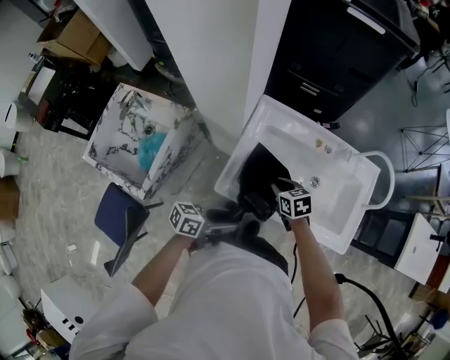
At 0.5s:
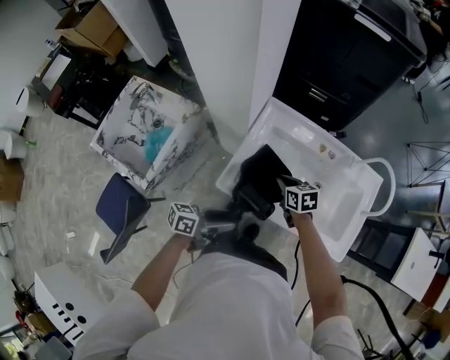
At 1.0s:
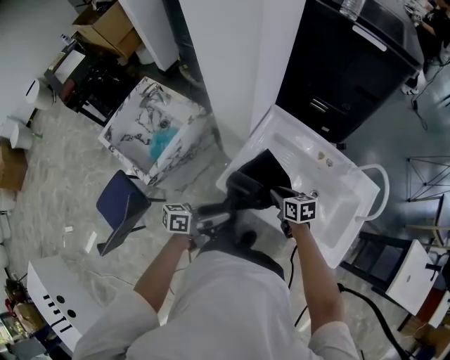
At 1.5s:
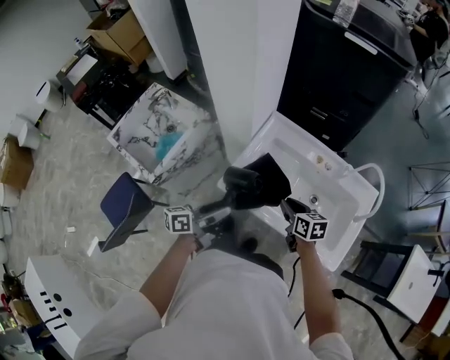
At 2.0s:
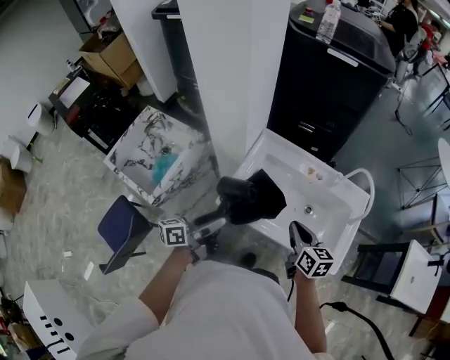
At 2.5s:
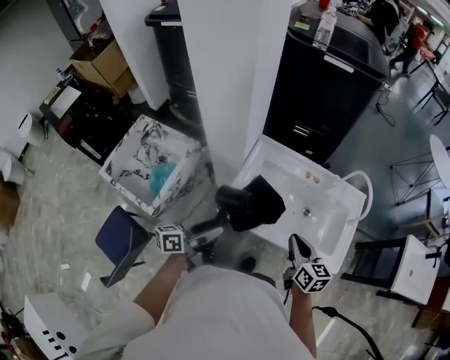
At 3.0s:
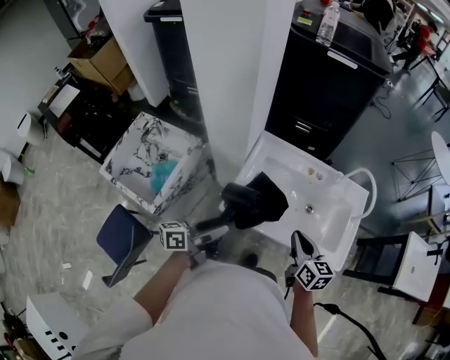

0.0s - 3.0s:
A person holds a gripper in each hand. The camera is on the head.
0.0s - 1.5s: The right gripper heads to the right, backward and upward, covering approximately 15 cm. Meanwhile the left gripper moves upward, about 5 cm, and swivels roughly 40 degrees.
1.5s - 3.0s: The left gripper shifts approximately 5 cm upward. Meanwhile the right gripper goes about 15 cm upward and backward, changes its angle by approximately 30 degrees, and closes up.

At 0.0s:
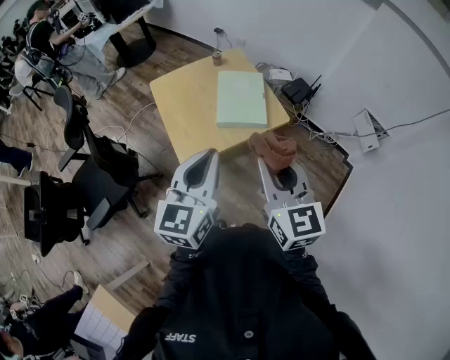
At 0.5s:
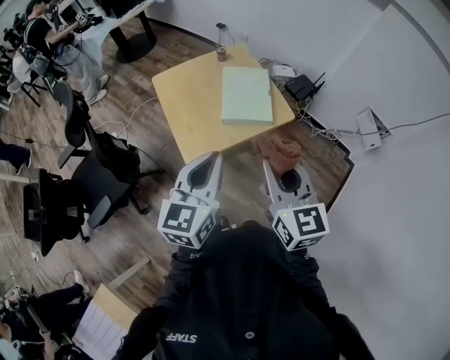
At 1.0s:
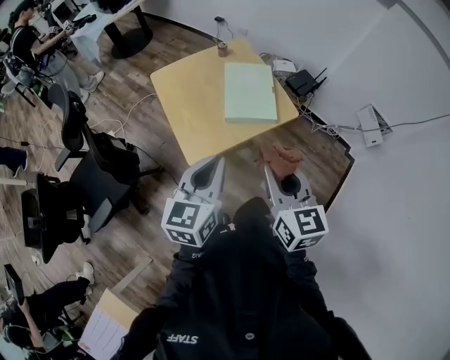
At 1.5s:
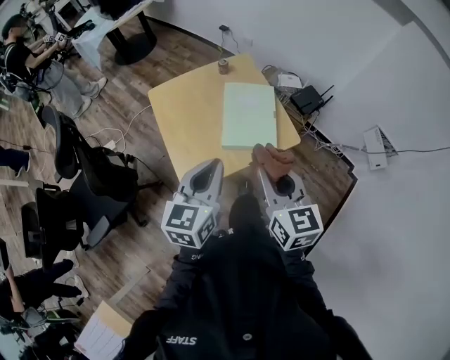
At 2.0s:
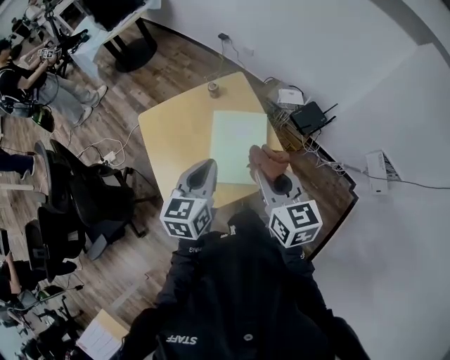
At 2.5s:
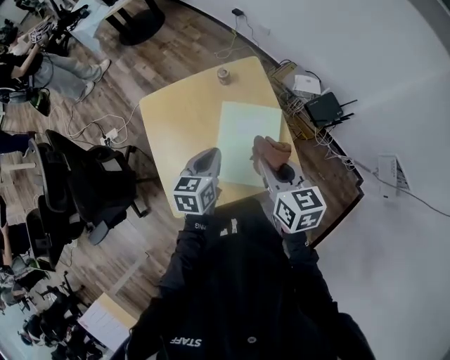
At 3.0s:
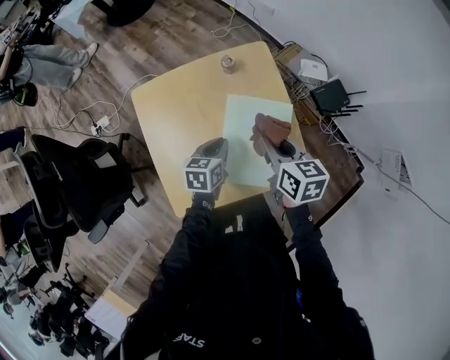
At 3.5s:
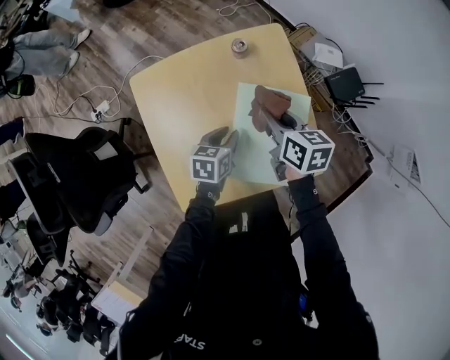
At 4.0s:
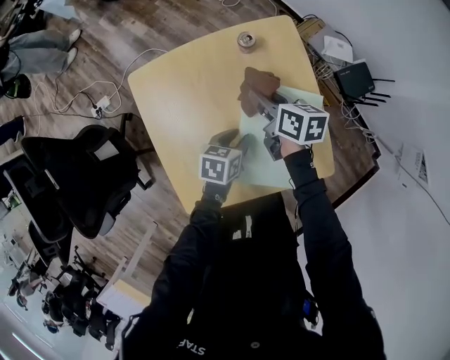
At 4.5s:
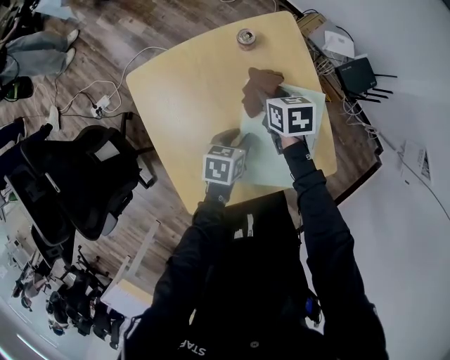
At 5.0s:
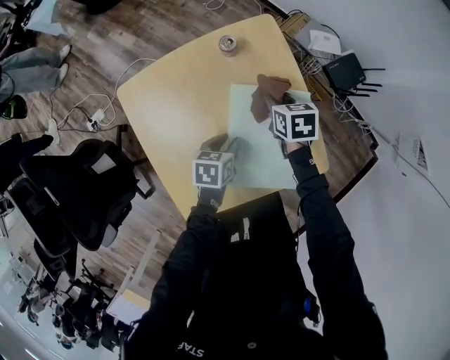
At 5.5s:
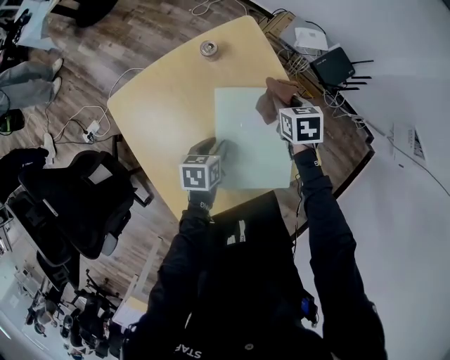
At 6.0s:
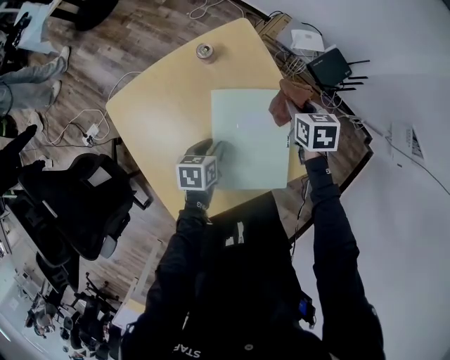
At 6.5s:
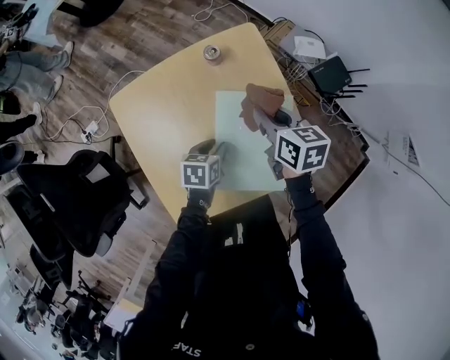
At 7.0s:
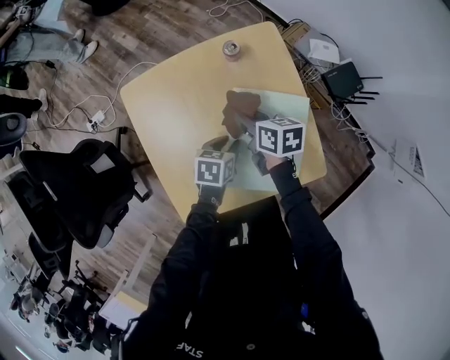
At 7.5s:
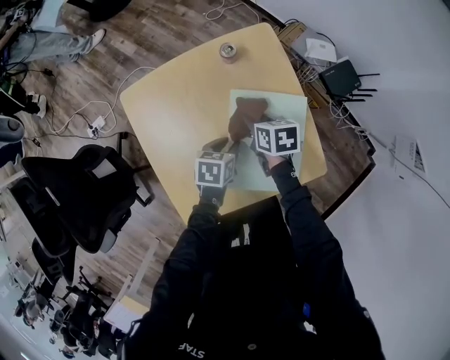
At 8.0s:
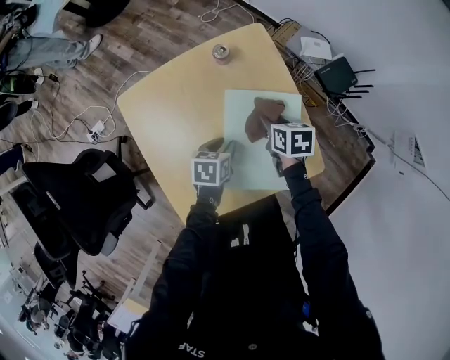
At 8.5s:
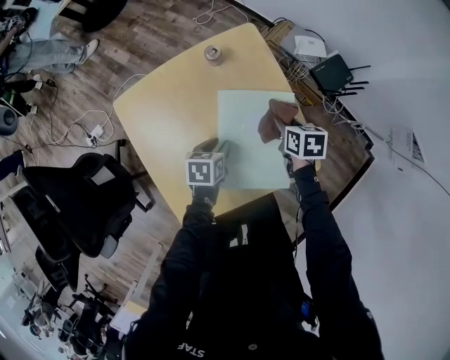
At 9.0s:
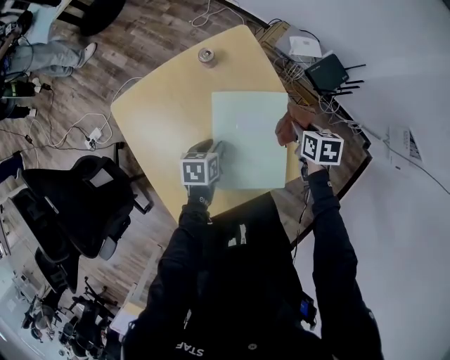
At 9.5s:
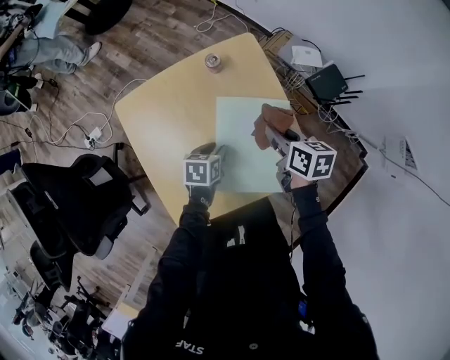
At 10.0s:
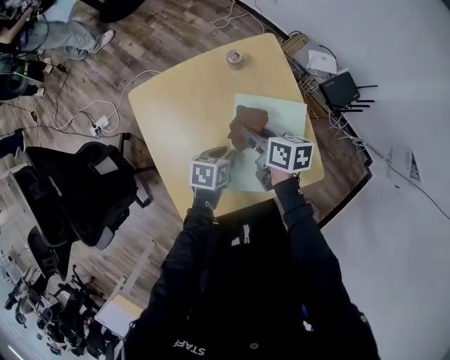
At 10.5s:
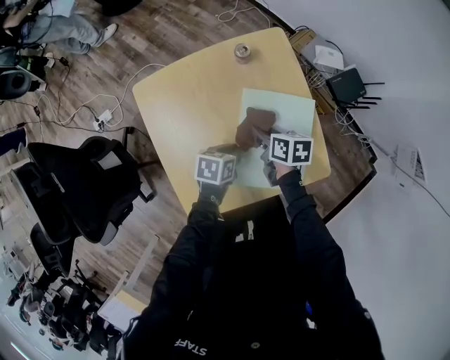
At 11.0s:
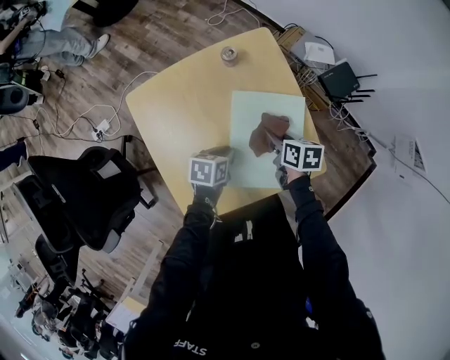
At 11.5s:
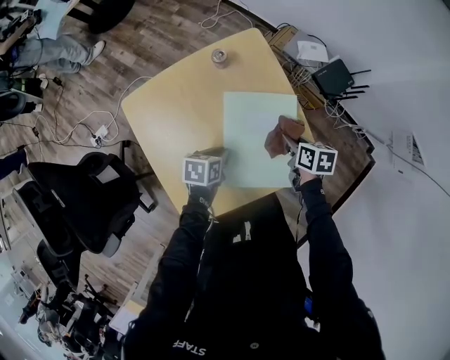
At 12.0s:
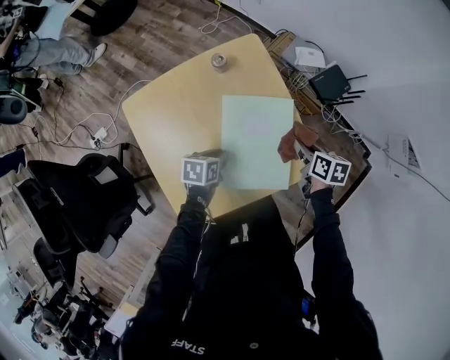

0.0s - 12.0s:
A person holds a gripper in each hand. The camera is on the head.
0.0s - 2.0s: Both grippers move forward, approximately 30 cm.
2.0s - 4.0s: The right gripper travels downward, forward and to the left by approximately 40 cm, and swivels approximately 40 degrees. Meanwhile the left gripper heads downward and forward, covering approximately 35 cm, changes its angle by approximately 40 degrees, and opens.
4.0s - 6.0s: The right gripper goes some 20 cm to the right, and turns by approximately 30 degrees.
6.0s - 8.0s: The right gripper moves to the left and backward, approximately 10 cm.
8.0s - 10.0s: The right gripper moves to the left and upward, about 10 cm, and rotates about 20 degrees.
10.0s - 12.0s: The right gripper heads to the right, covering some 20 cm, and changes its angle by some 20 degrees.

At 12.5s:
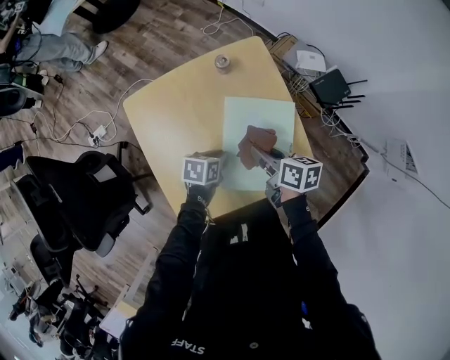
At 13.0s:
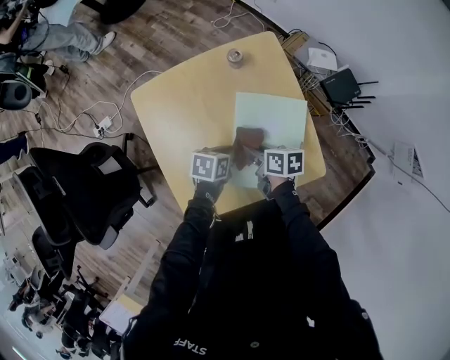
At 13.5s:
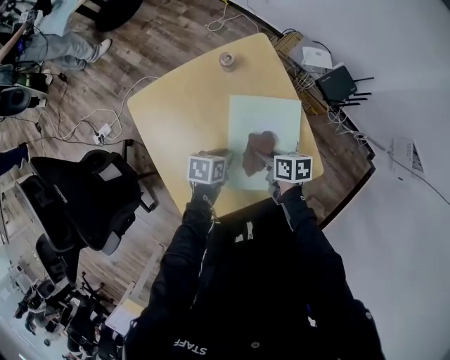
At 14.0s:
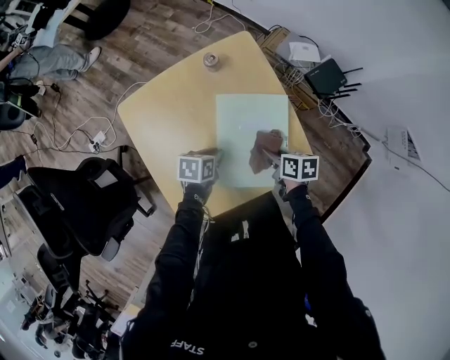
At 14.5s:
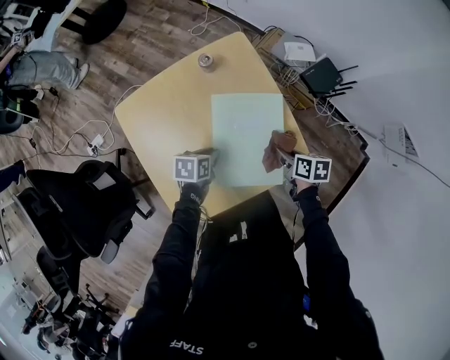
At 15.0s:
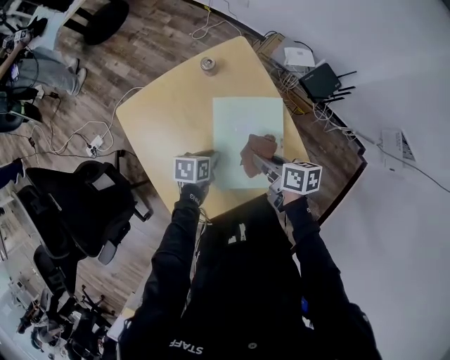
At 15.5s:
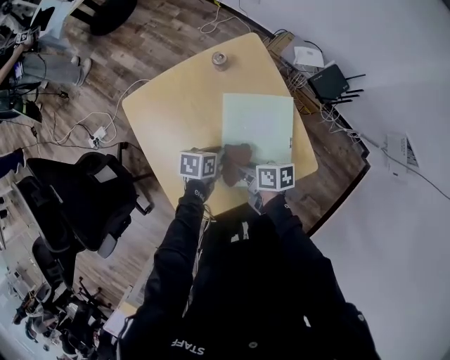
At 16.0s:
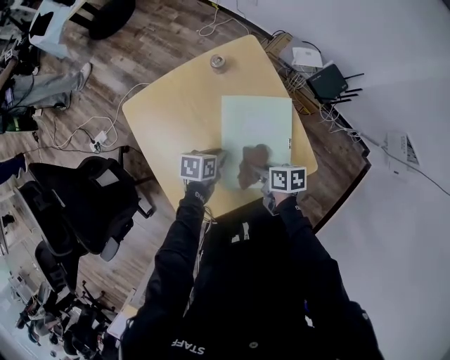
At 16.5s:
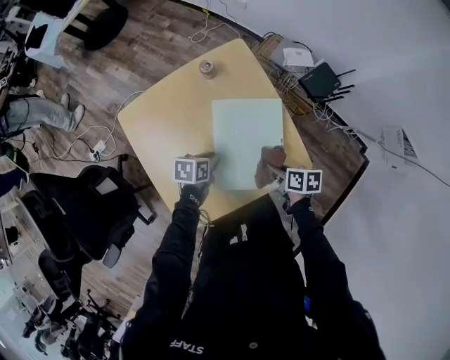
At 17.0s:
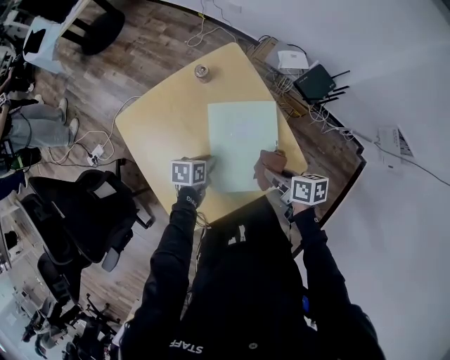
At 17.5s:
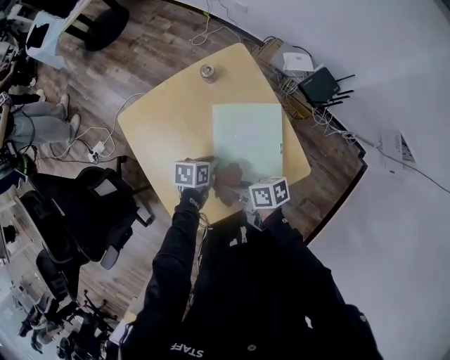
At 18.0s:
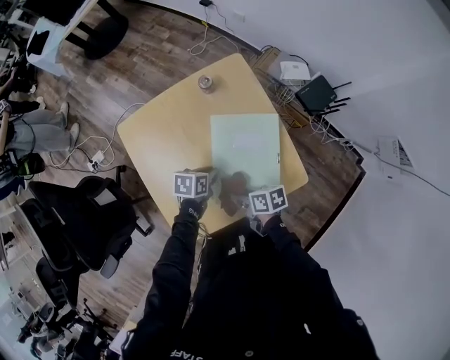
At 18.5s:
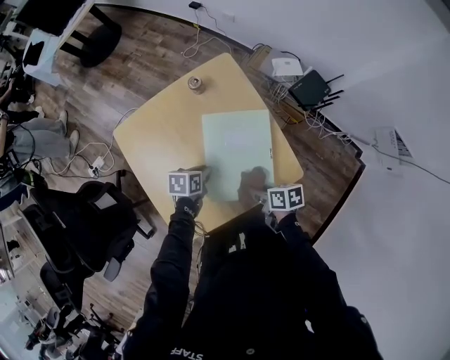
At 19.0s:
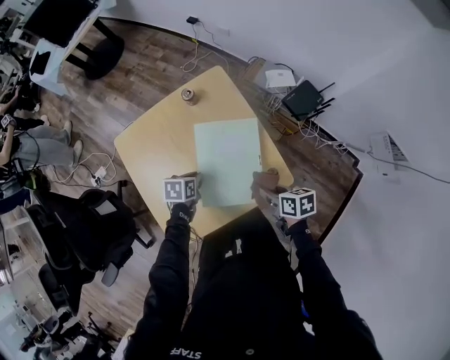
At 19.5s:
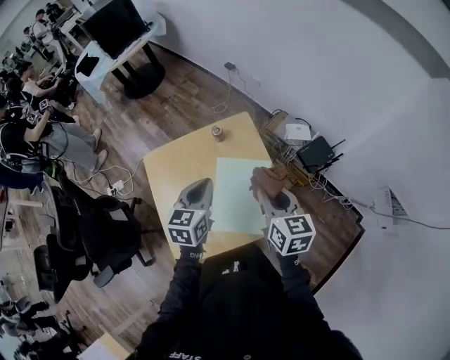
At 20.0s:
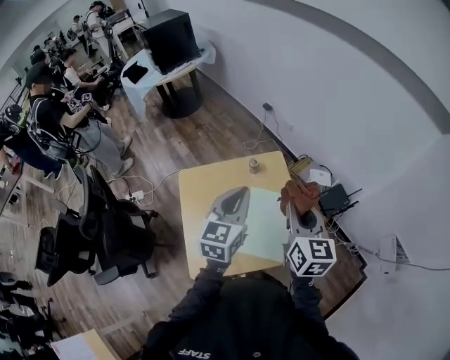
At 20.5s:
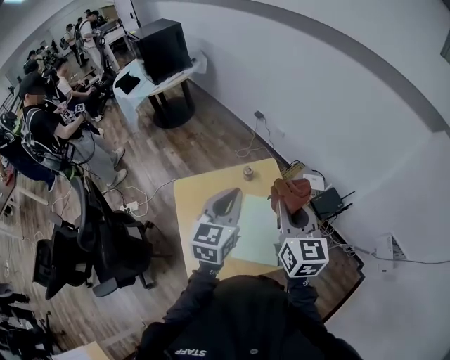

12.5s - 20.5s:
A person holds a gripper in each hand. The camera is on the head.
12.5s - 14.5s: The right gripper is displaced to the right and downward by about 15 cm.
18.5s - 20.5s: Both grippers travel together upward, some 50 cm. The left gripper angles its fingers upward, by some 40 degrees; the right gripper angles its fingers upward, by roughly 30 degrees.

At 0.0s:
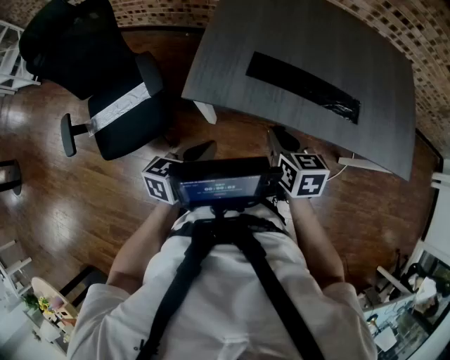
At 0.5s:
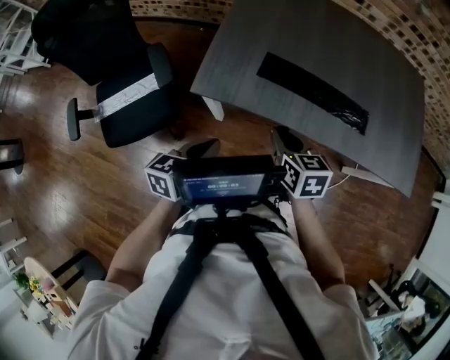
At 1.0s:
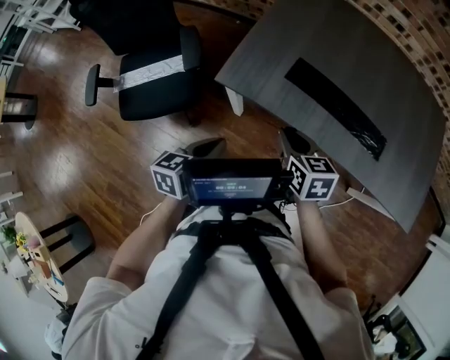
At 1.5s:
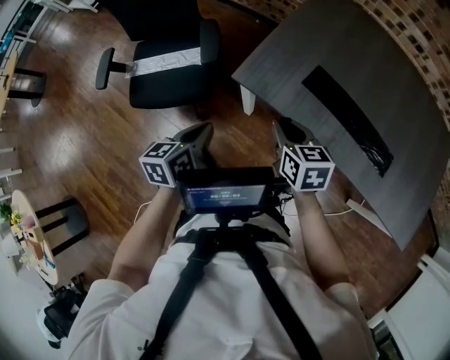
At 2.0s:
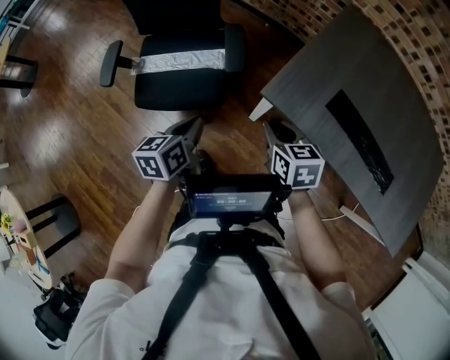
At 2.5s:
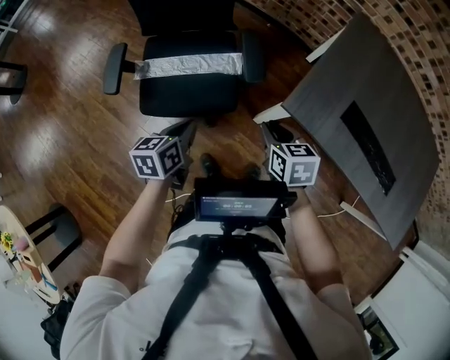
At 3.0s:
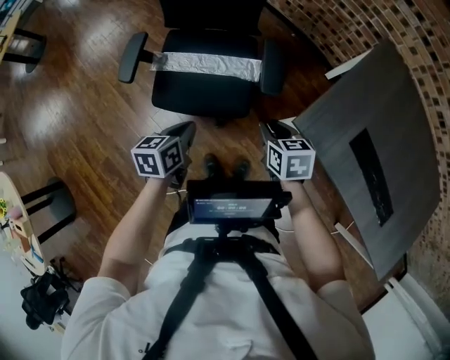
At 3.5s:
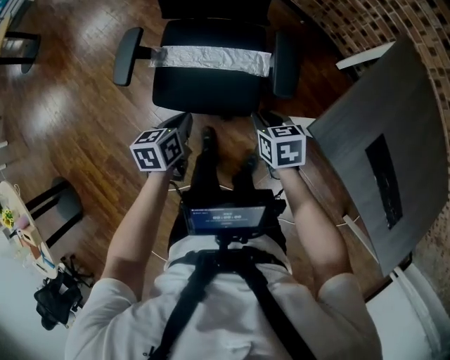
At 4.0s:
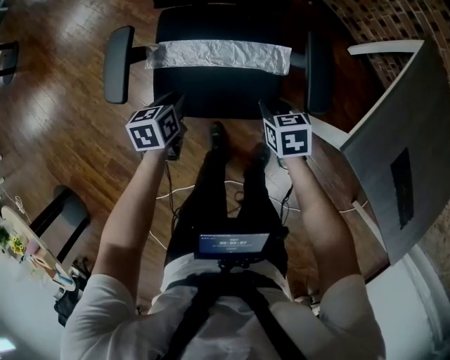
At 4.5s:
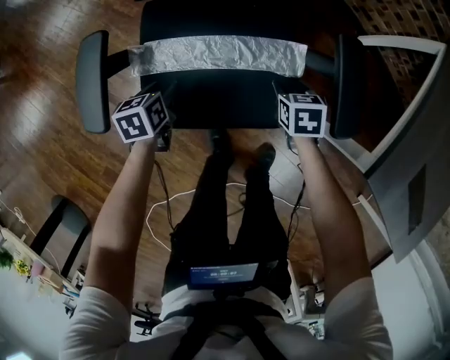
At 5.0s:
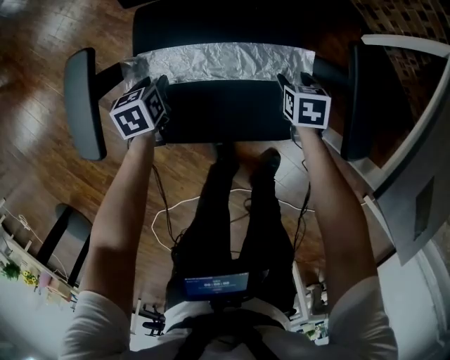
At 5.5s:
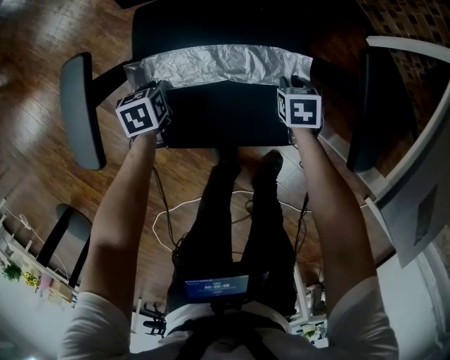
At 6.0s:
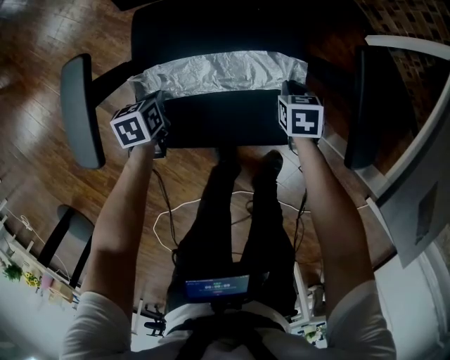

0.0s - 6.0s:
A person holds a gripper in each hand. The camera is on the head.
0.0s - 2.0s: The right gripper changes place by some 25 cm, and turns by some 30 degrees, while the left gripper changes place by some 25 cm, and changes its angle by roughly 30 degrees.
2.0s - 4.0s: The right gripper shifts about 35 cm downward, forward and to the left, and rotates roughly 20 degrees. Meanwhile the left gripper heads to the left, forward and downward, covering approximately 40 cm, and opens its fingers.
4.0s - 6.0s: The two grippers go some 20 cm downward. The right gripper closes its fingers. The left gripper closes up.
